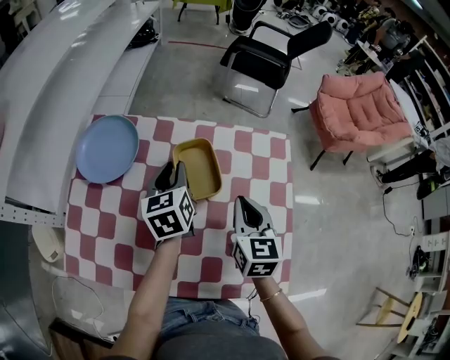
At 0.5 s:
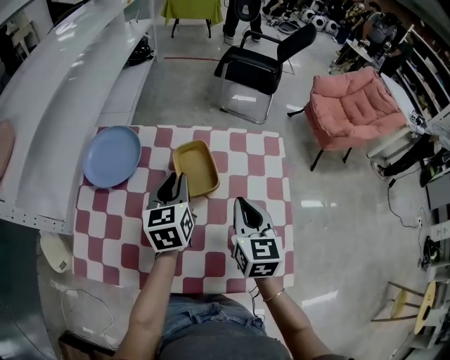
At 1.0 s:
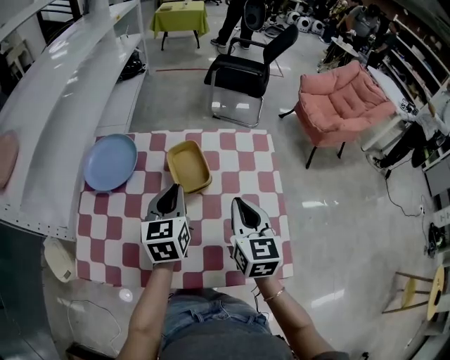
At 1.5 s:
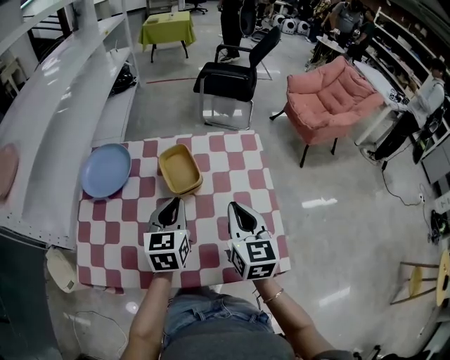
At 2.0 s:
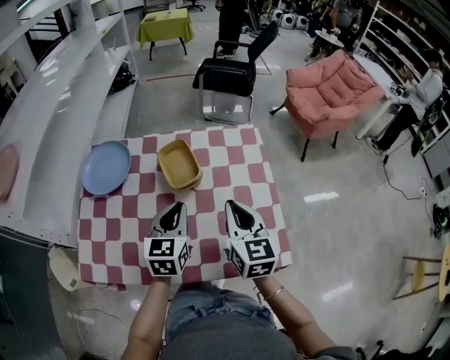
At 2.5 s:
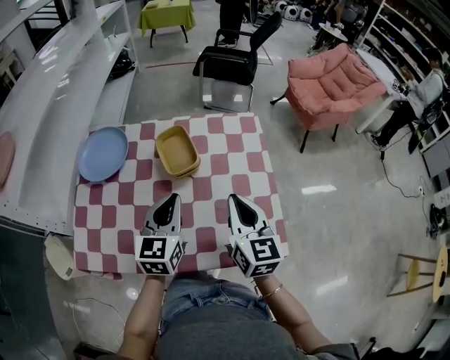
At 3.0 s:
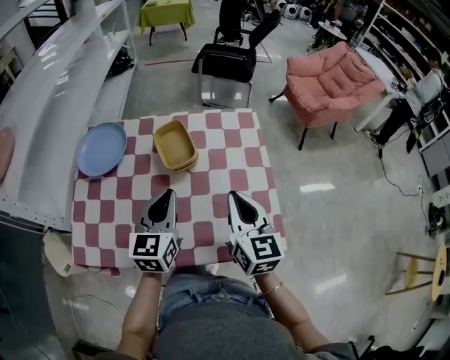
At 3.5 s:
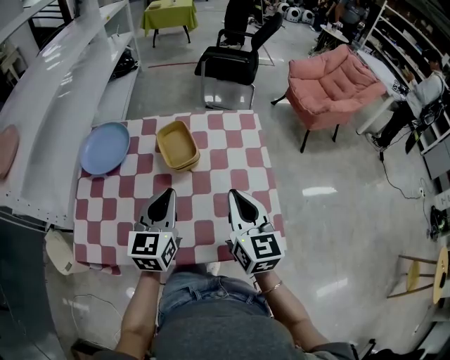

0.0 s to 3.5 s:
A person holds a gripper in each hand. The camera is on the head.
0.0 to 2.0 s: The right gripper shifts some 15 cm backward and upward. The left gripper is displaced backward and to the right by roughly 20 cm, and swivels roughly 30 degrees.
2.0 to 3.5 s: The left gripper shifts by about 5 cm.

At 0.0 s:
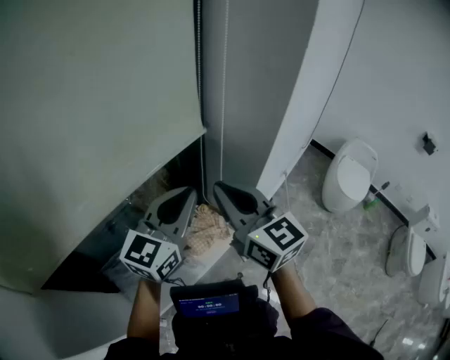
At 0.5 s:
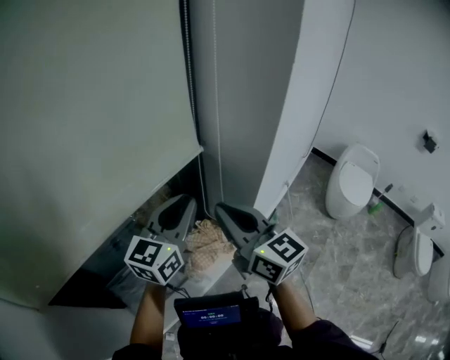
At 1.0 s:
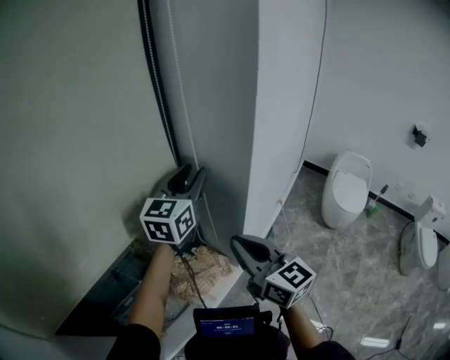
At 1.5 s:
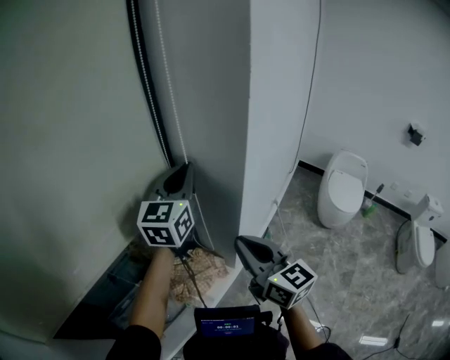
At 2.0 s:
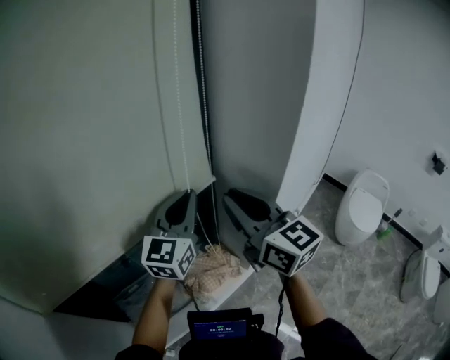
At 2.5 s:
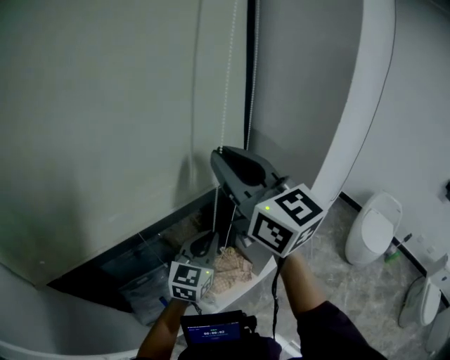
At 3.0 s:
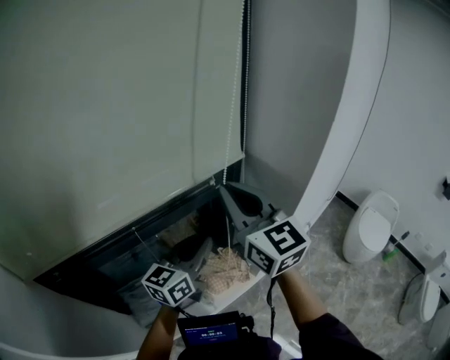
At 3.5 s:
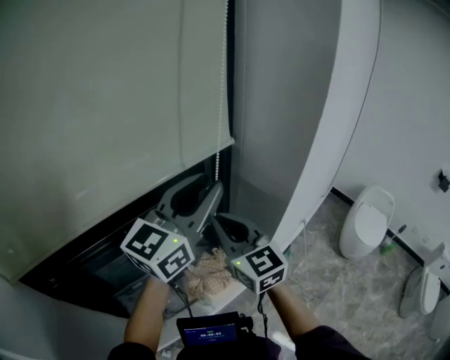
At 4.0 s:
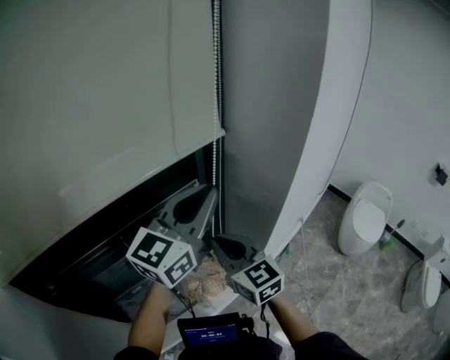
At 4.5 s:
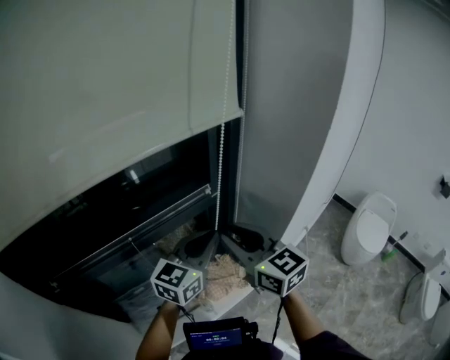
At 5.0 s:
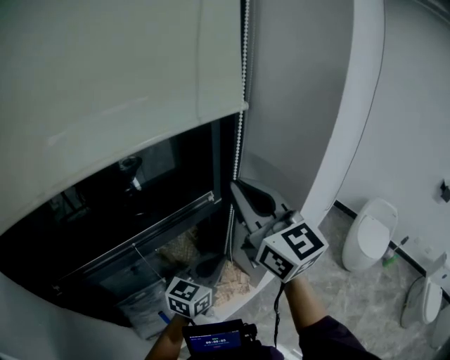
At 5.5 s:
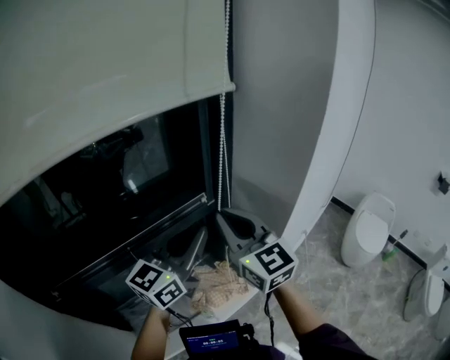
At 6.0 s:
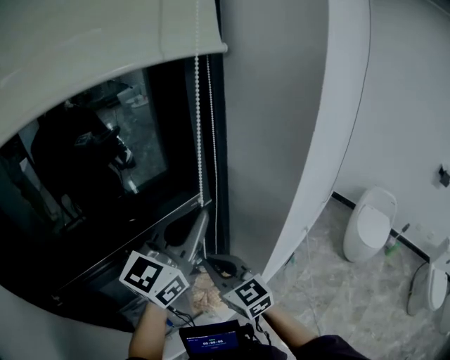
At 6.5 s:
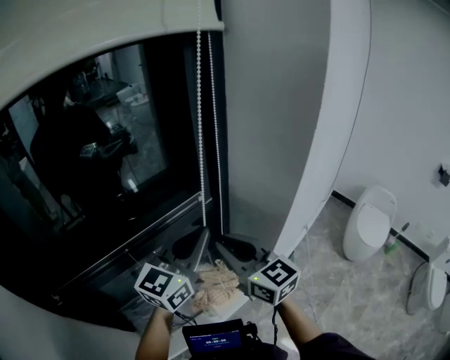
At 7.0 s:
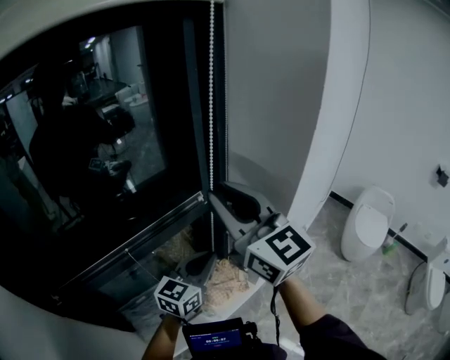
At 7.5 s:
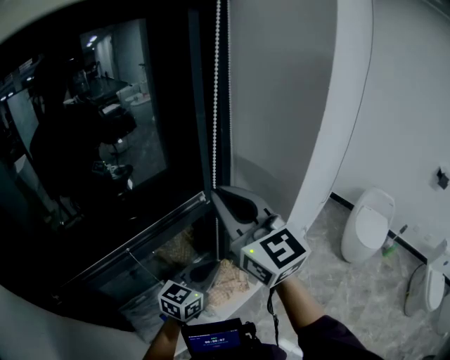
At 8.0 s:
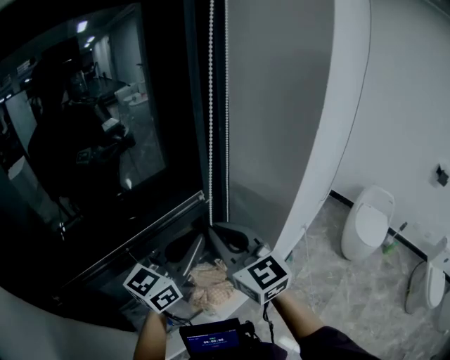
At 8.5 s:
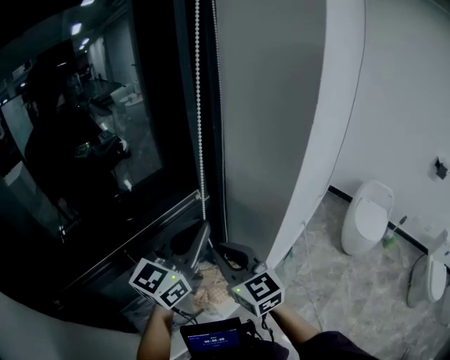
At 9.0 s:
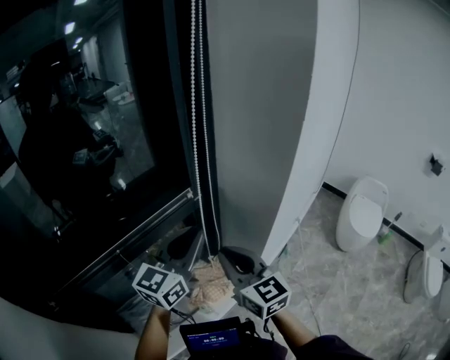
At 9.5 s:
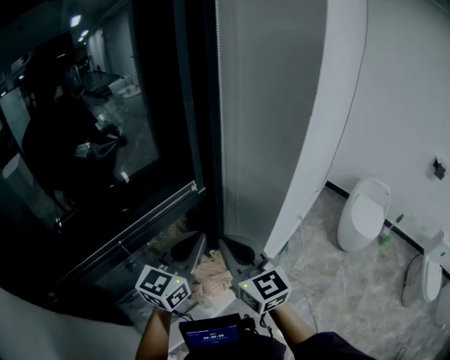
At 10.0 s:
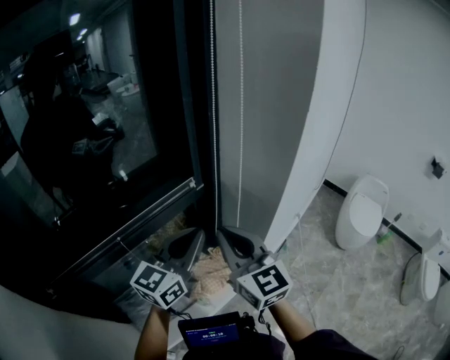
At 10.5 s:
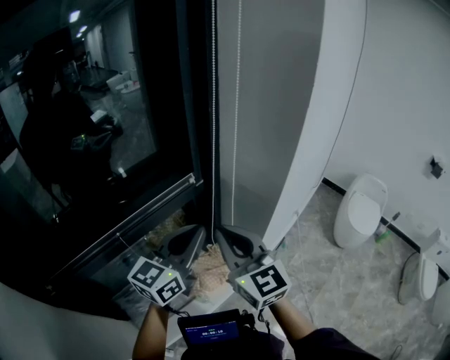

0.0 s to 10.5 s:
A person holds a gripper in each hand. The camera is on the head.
0.0 to 2.0 s: The left gripper travels forward by approximately 10 cm, and opens, then closes once more. Meanwhile the right gripper shifts roughly 10 cm upward and forward, and goes to the right and returns, approximately 10 cm each way.
2.0 to 4.0 s: The left gripper heads backward, covering some 5 cm, and moves roughly 15 cm downward and comes back; the right gripper shifts about 15 cm downward and to the left.
4.0 to 6.5 s: The right gripper swings up and down, about 25 cm each way, with 2 reversals. Meanwhile the left gripper goes up and down, some 20 cm each way, reversing 2 times.
6.5 to 8.5 s: The left gripper goes downward and returns, roughly 15 cm each way; the right gripper goes upward and returns, some 15 cm each way.
8.5 to 10.5 s: The left gripper shifts approximately 5 cm downward. The right gripper shifts by about 5 cm.

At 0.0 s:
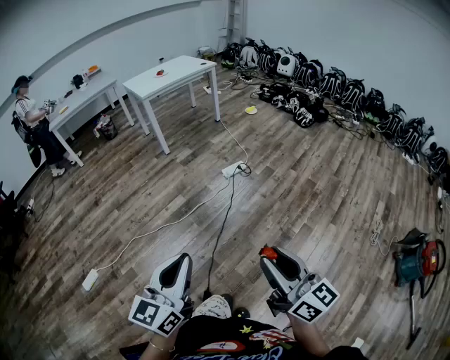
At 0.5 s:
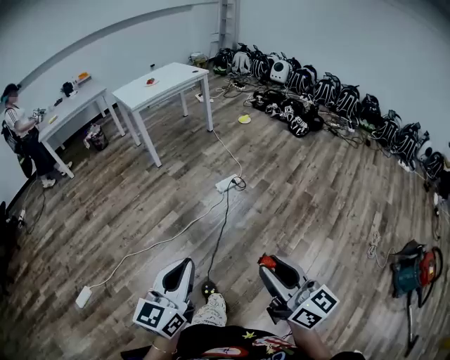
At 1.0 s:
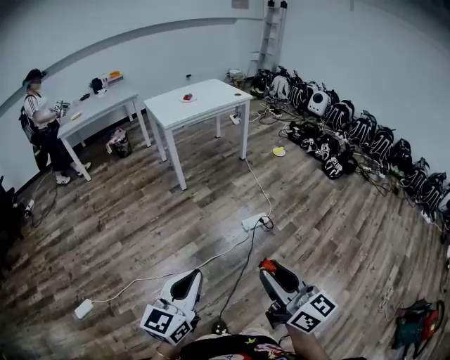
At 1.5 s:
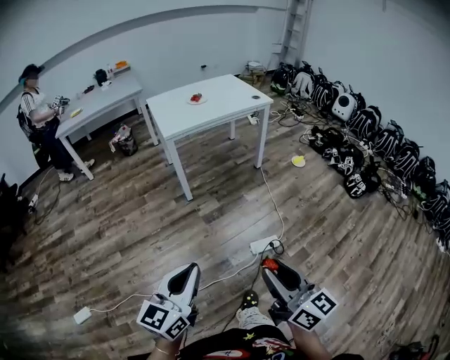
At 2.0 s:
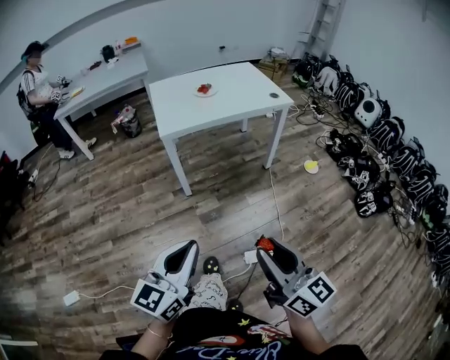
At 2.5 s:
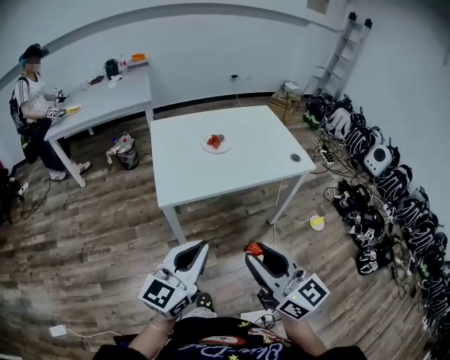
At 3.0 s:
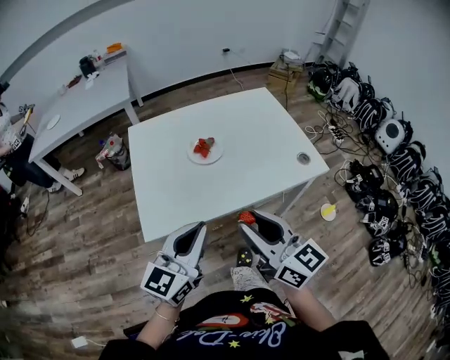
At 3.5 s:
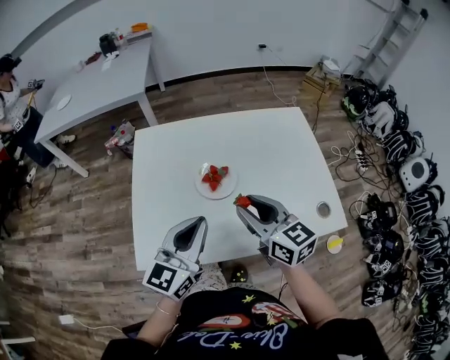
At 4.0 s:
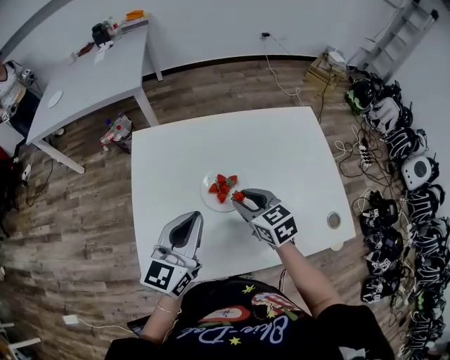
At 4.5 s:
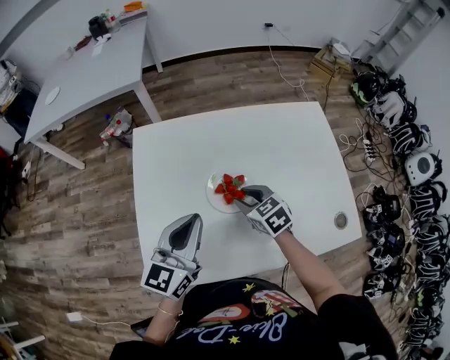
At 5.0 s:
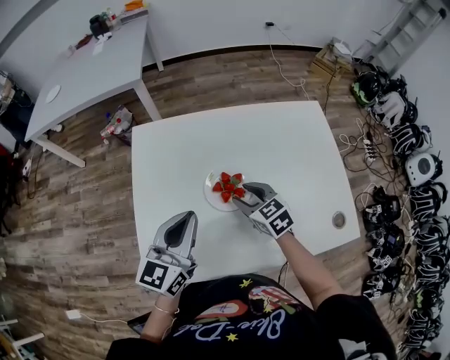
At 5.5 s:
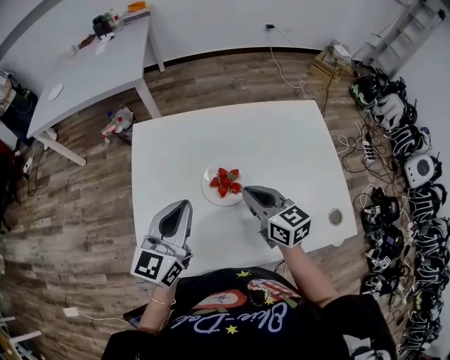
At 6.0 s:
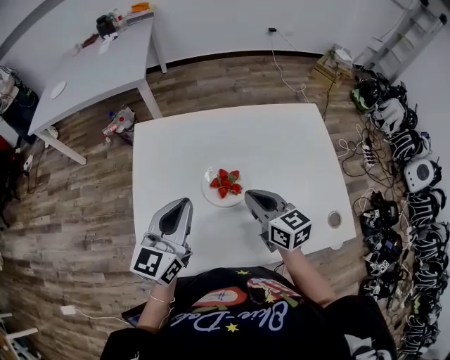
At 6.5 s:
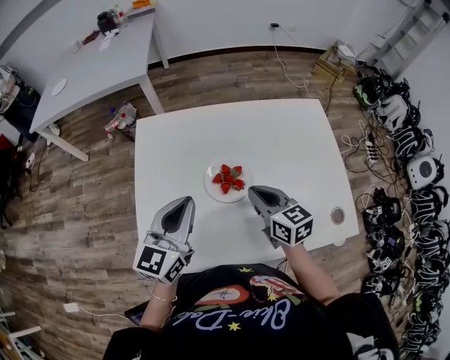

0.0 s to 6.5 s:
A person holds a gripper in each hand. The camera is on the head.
0.0 to 2.0 s: The two grippers travel together, forward, some 90 cm. The right gripper turns by roughly 20 degrees.
2.0 to 4.5 s: The two grippers travel together, forward, about 90 cm. The right gripper points its fingers roughly 50 degrees further downward.
4.5 to 6.5 s: The right gripper shifts some 10 cm upward, swivels roughly 30 degrees, and closes its fingers.

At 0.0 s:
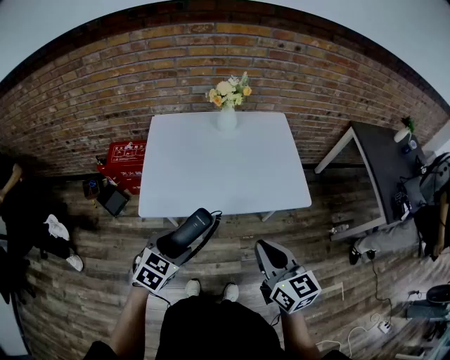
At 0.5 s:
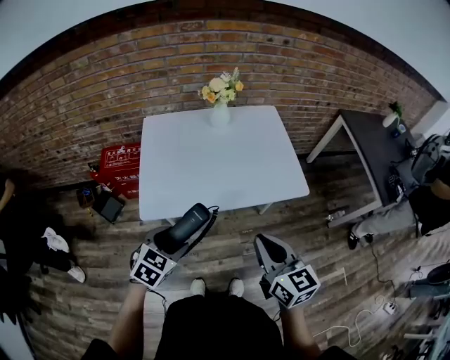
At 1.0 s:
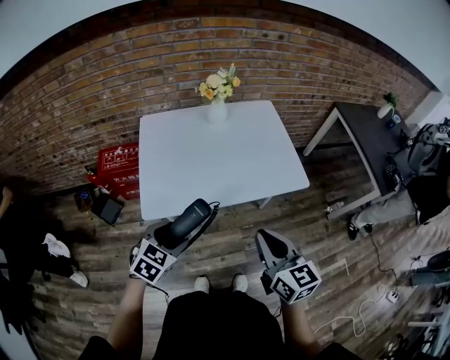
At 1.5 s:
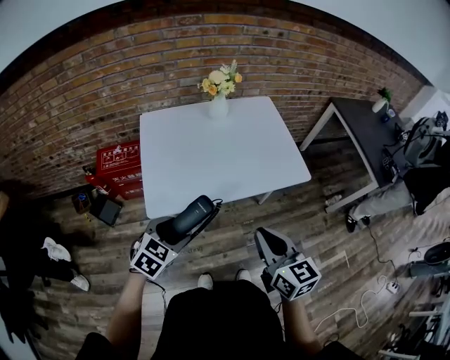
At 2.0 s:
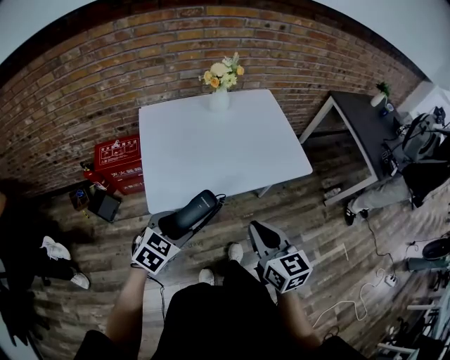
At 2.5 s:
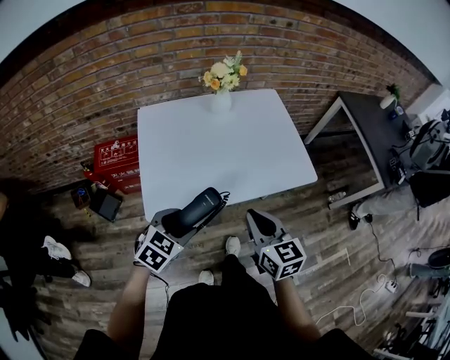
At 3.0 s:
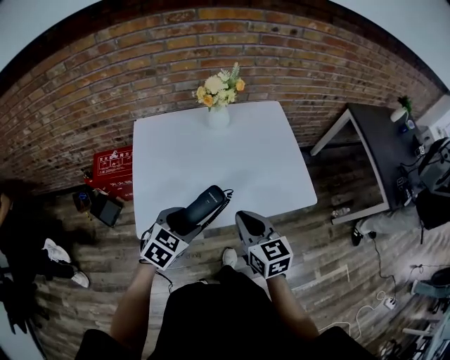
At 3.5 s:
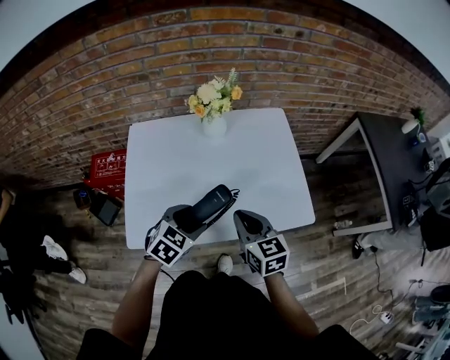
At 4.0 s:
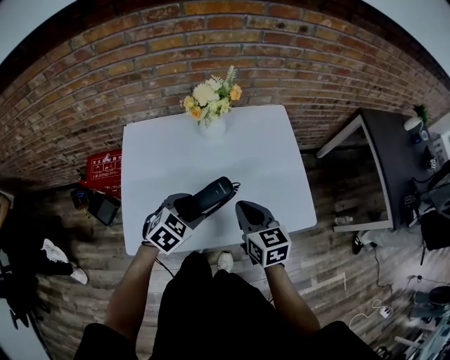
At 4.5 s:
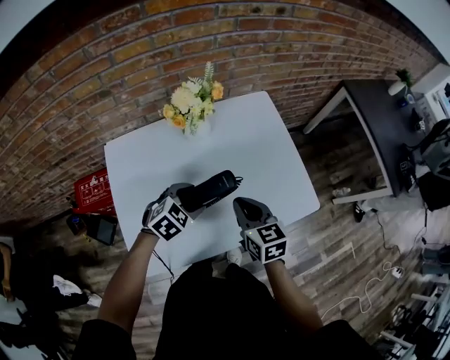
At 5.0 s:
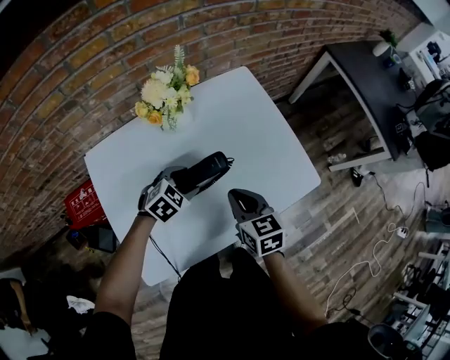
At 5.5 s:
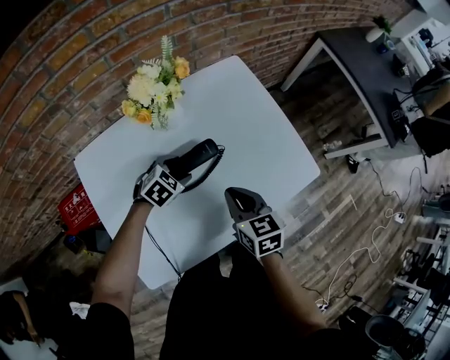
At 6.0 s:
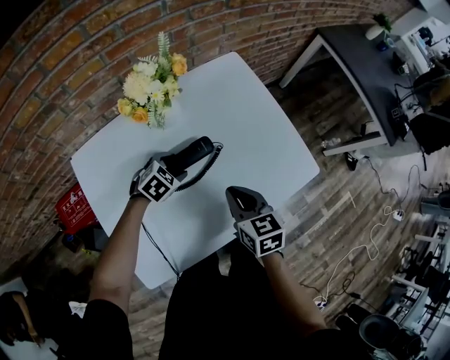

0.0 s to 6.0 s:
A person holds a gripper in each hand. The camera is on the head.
0.0 to 2.0 s: Both grippers travel together to the left, about 10 cm.
2.0 to 4.0 s: Both grippers travel together forward, some 30 cm.
4.0 to 6.0 s: The left gripper is displaced forward and downward by roughly 20 cm, and changes its angle by roughly 30 degrees; the right gripper travels downward by some 10 cm, and turns by about 20 degrees.
